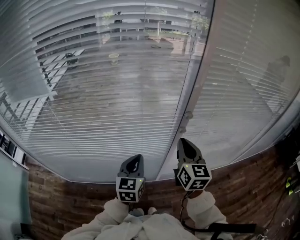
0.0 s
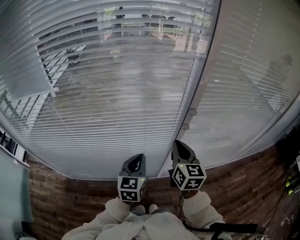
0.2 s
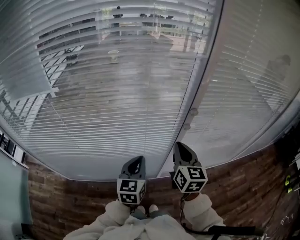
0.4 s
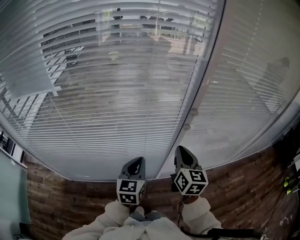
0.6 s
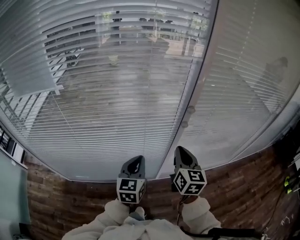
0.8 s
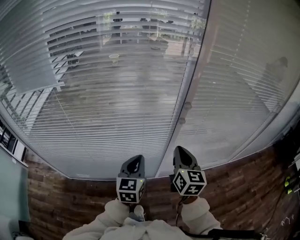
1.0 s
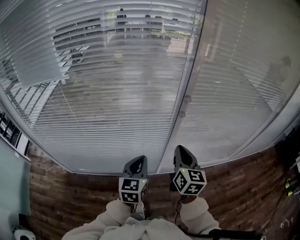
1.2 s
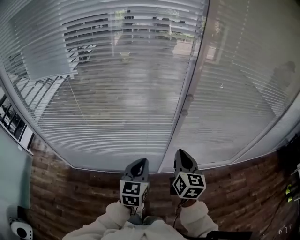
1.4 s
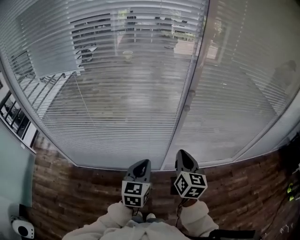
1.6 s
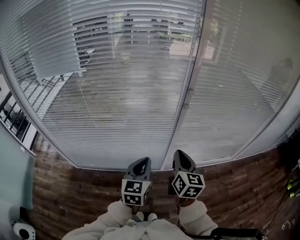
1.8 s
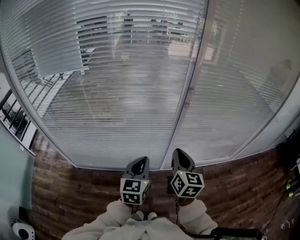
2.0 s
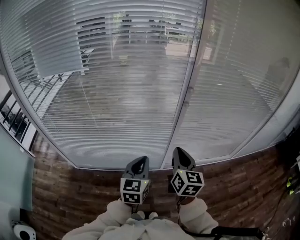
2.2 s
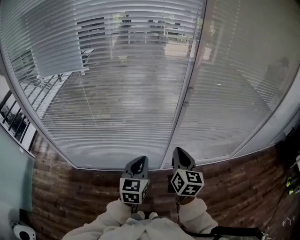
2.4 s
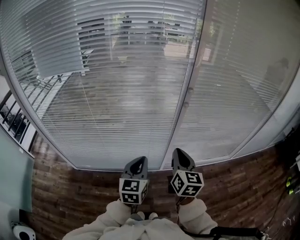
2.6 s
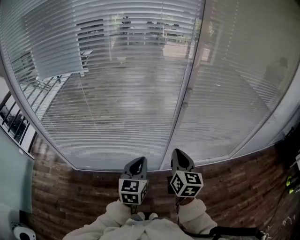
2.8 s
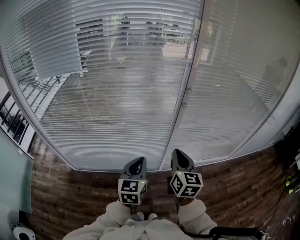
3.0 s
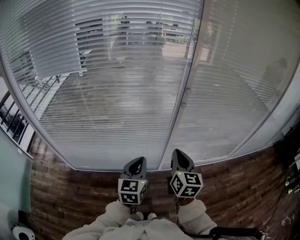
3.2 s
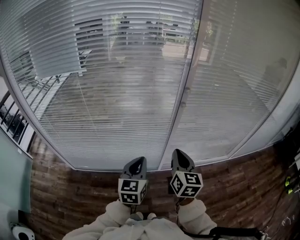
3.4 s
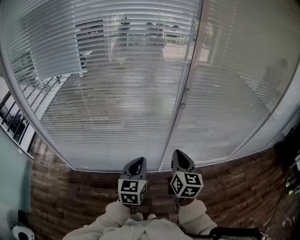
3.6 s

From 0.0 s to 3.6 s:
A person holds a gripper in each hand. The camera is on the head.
From 0.0 s to 1.8 s: Both grippers move backward, some 25 cm.
From 1.8 s to 3.6 s: The grippers move only a little.

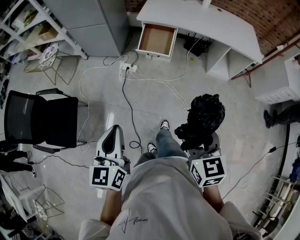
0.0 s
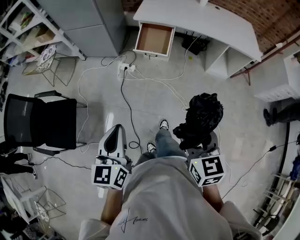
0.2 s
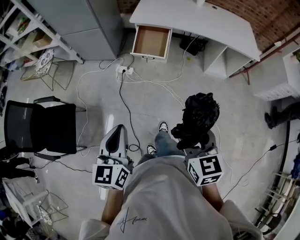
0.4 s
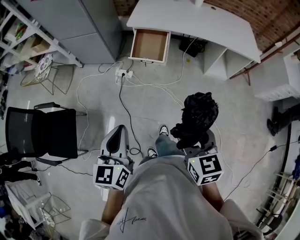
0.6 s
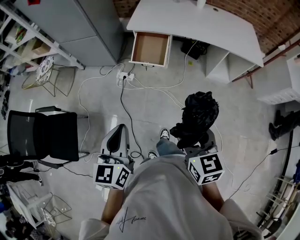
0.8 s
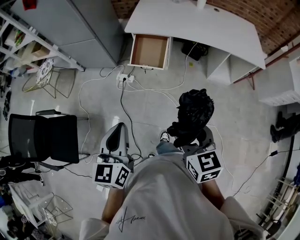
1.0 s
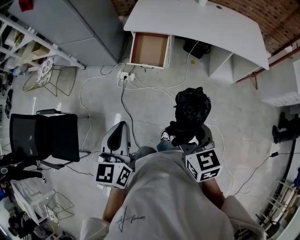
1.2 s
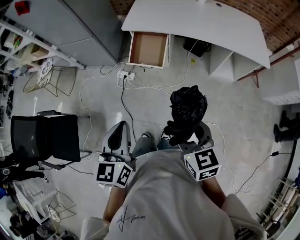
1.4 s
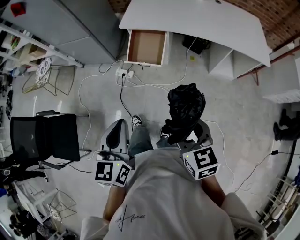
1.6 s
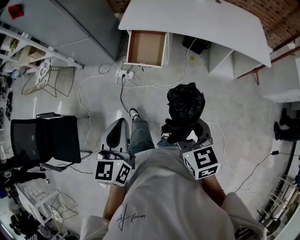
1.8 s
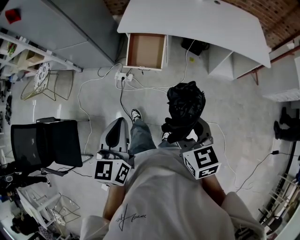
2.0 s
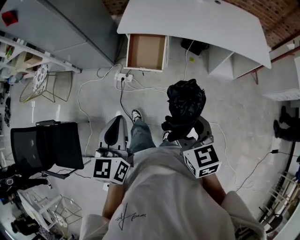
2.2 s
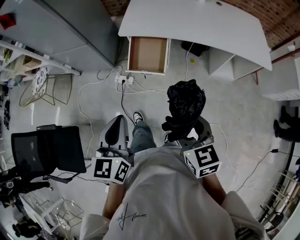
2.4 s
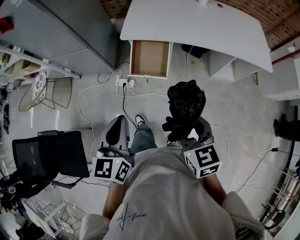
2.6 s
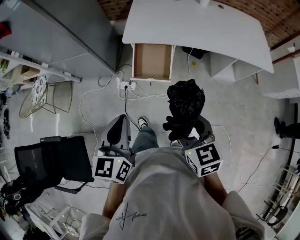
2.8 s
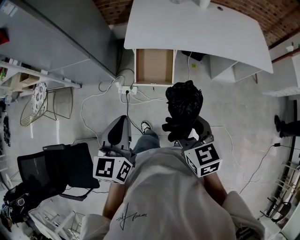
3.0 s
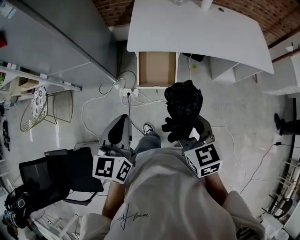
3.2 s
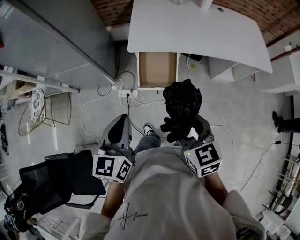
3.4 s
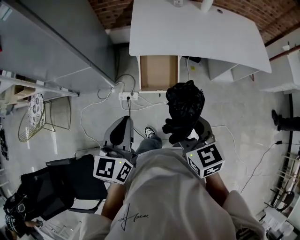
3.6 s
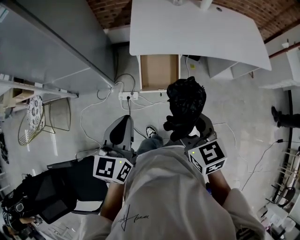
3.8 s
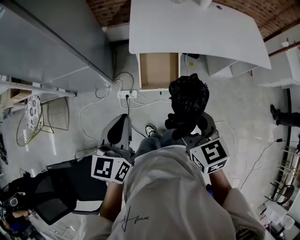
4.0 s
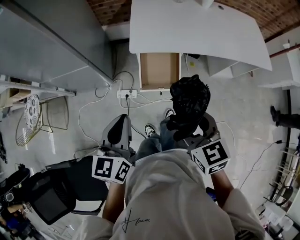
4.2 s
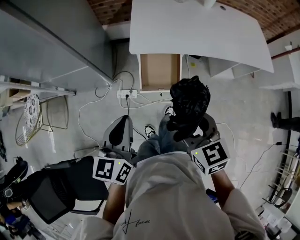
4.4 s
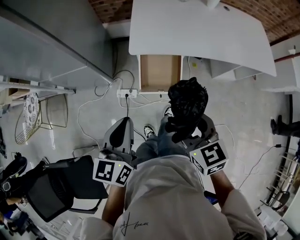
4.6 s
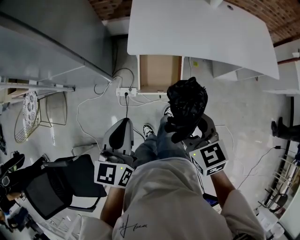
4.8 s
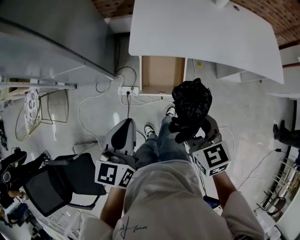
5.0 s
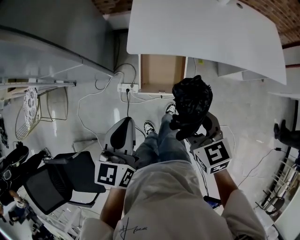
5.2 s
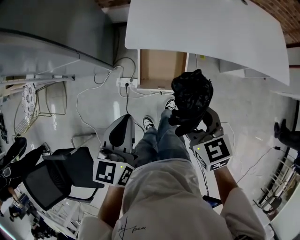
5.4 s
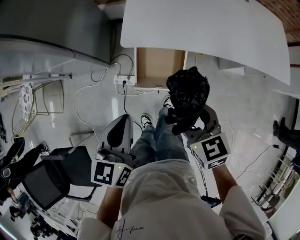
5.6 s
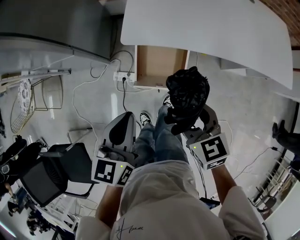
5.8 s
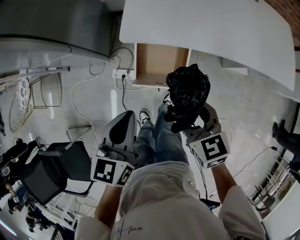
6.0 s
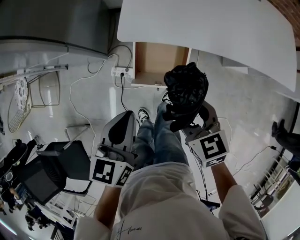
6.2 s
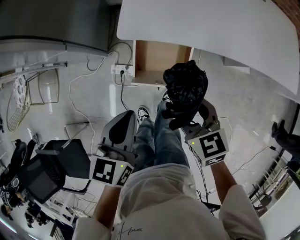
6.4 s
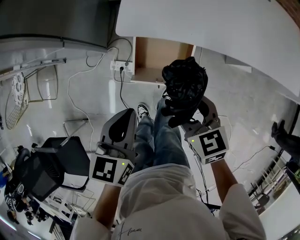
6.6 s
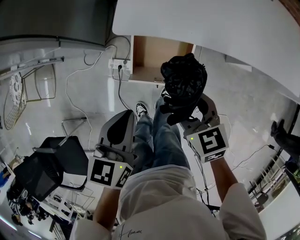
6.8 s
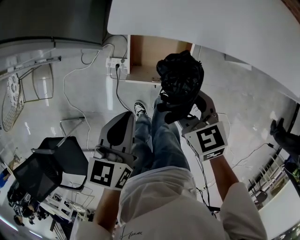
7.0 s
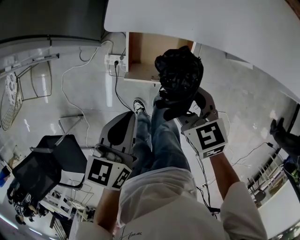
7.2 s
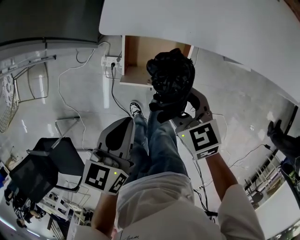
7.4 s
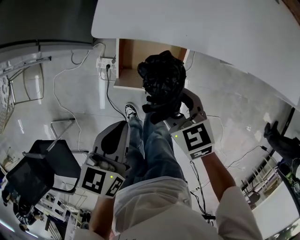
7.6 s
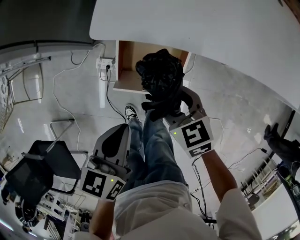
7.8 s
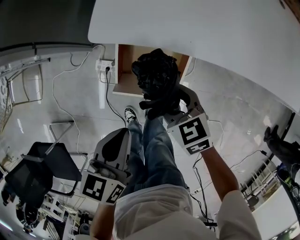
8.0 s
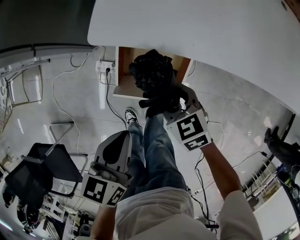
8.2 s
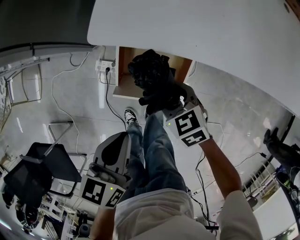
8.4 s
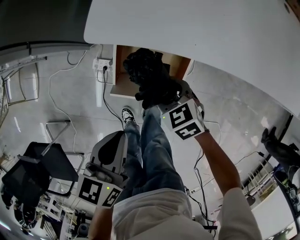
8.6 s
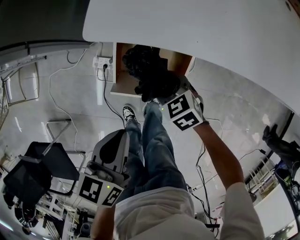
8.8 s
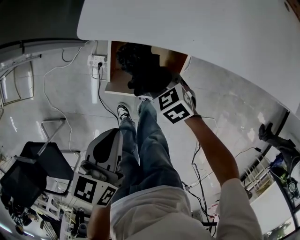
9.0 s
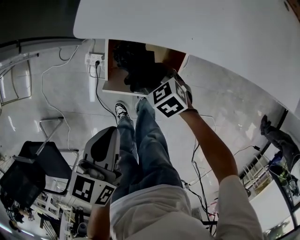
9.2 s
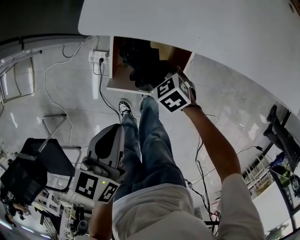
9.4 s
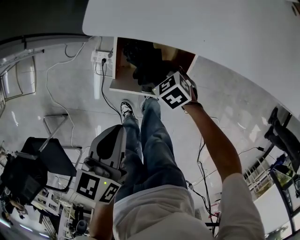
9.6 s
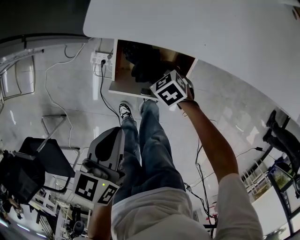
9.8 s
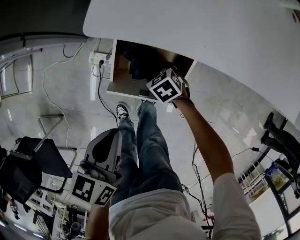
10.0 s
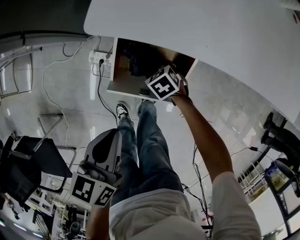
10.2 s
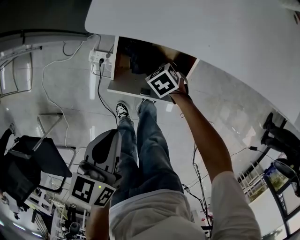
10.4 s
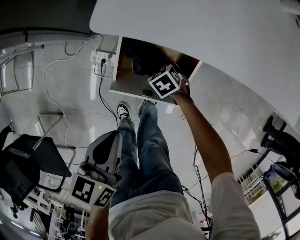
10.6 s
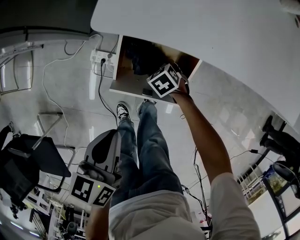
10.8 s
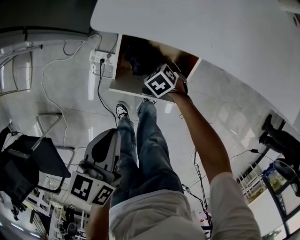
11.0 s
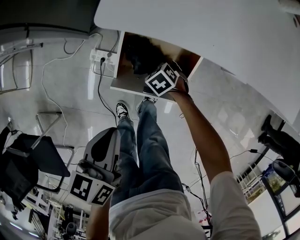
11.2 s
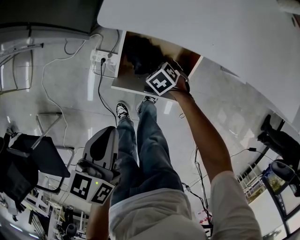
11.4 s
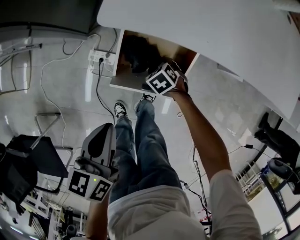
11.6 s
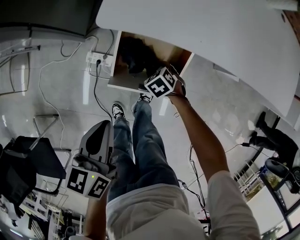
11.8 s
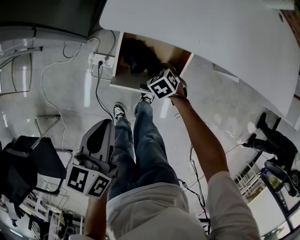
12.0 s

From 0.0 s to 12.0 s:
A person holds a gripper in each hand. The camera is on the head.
From 0.0 s to 1.6 s: The right gripper travels forward by approximately 20 cm. The left gripper shifts some 25 cm forward and to the right.
From 1.6 s to 3.0 s: Both grippers travel together forward and to the left, approximately 20 cm.
From 3.0 s to 4.4 s: The two grippers go about 10 cm forward and to the left.
From 4.4 s to 6.0 s: The right gripper travels downward, forward and to the right by about 15 cm. The left gripper moves to the right, downward and forward, some 15 cm.
From 6.0 s to 7.6 s: The right gripper moves downward and forward, about 15 cm. The left gripper is displaced downward by some 15 cm.
From 7.6 s to 9.0 s: The right gripper is displaced downward by about 15 cm.
From 9.0 s to 10.4 s: The right gripper travels downward by approximately 10 cm.
From 10.4 s to 12.0 s: The right gripper closes its fingers.

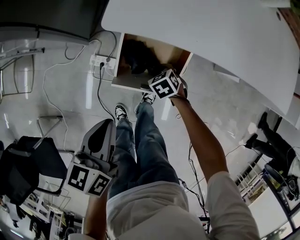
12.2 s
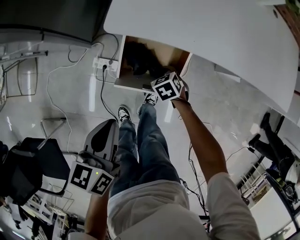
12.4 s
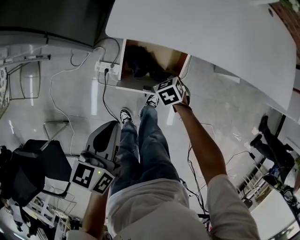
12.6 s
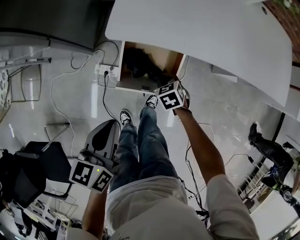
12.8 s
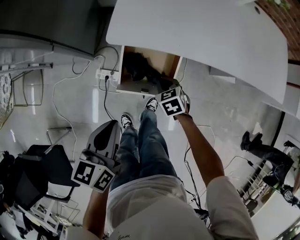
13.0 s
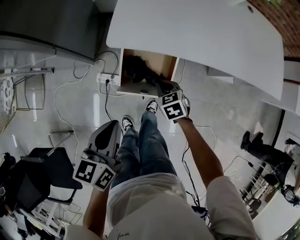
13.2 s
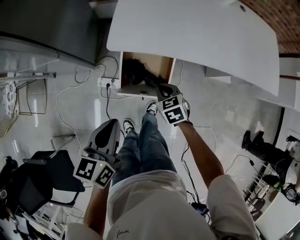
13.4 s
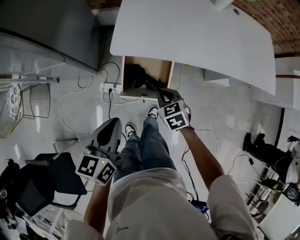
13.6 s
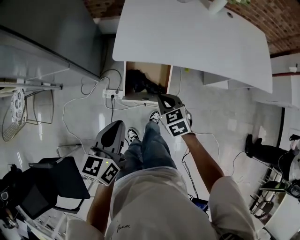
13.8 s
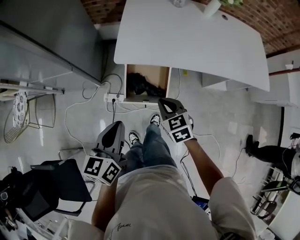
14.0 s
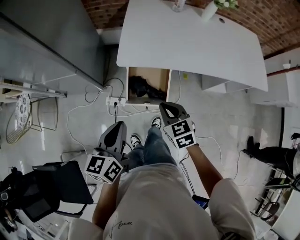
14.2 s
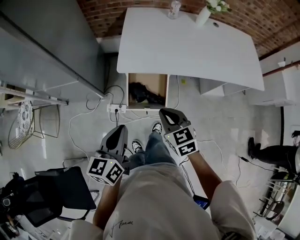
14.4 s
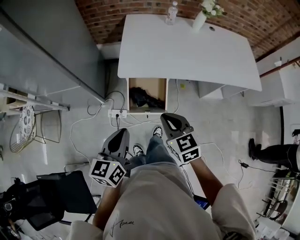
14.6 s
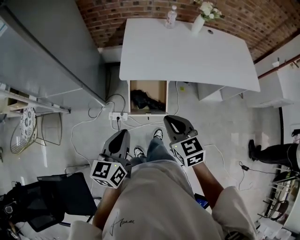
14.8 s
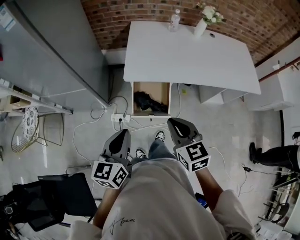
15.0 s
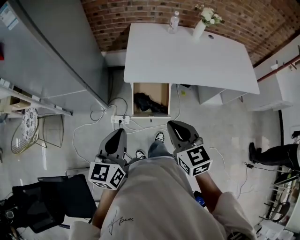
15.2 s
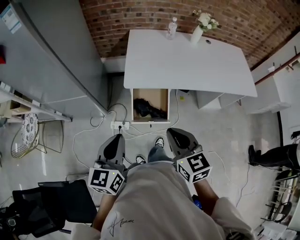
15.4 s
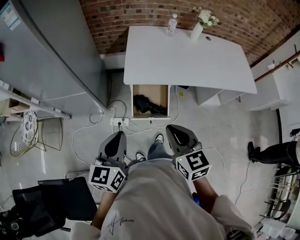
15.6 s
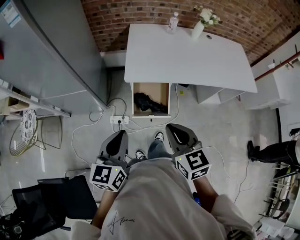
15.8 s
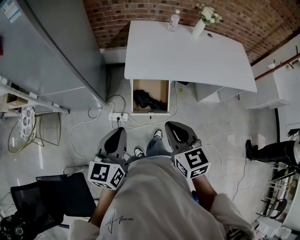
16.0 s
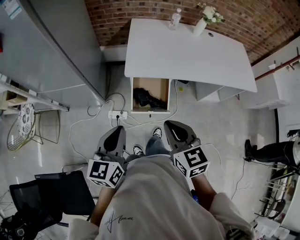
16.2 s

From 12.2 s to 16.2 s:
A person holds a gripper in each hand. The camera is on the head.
From 12.2 s to 13.6 s: The left gripper goes approximately 10 cm upward, while the right gripper shifts about 25 cm upward, and changes its angle by approximately 20 degrees.
From 13.6 s to 14.8 s: The left gripper travels upward and backward by approximately 10 cm. Meanwhile the right gripper goes approximately 25 cm upward and backward, and swivels approximately 20 degrees.
From 14.8 s to 16.2 s: The left gripper heads to the left, covering approximately 5 cm. Meanwhile the right gripper is displaced upward by some 5 cm.

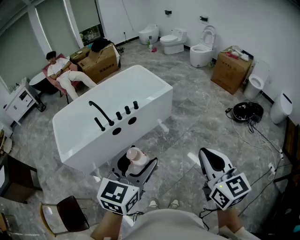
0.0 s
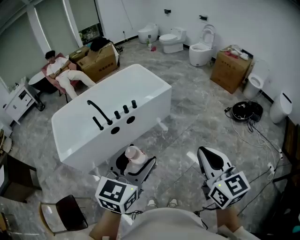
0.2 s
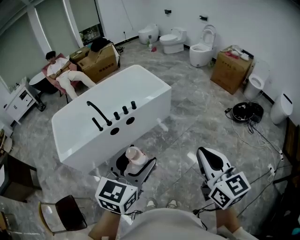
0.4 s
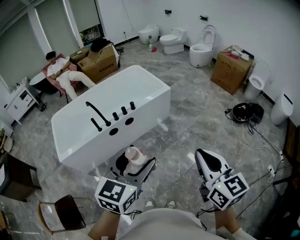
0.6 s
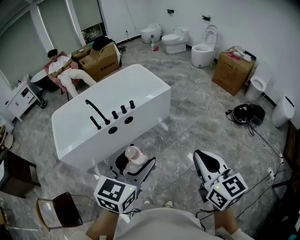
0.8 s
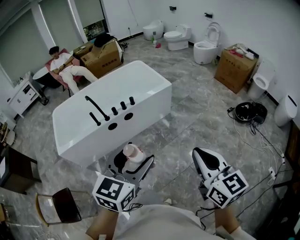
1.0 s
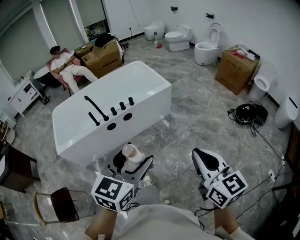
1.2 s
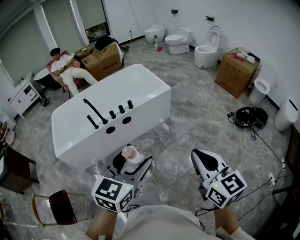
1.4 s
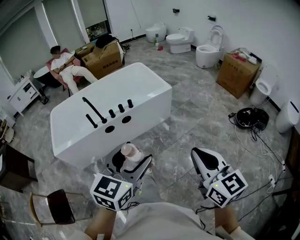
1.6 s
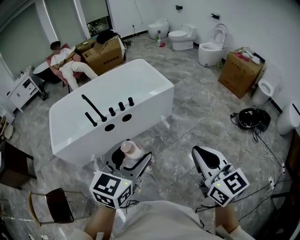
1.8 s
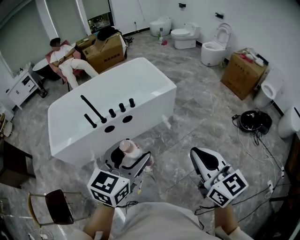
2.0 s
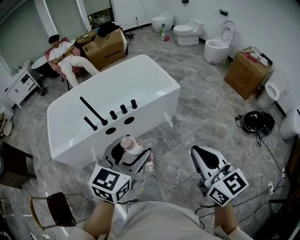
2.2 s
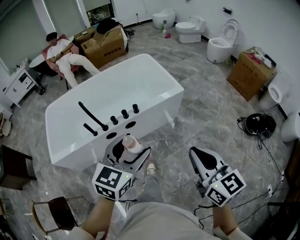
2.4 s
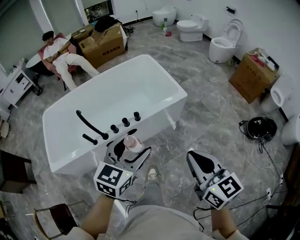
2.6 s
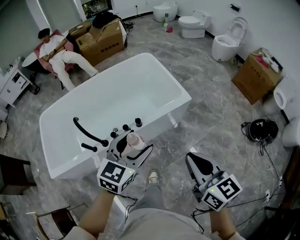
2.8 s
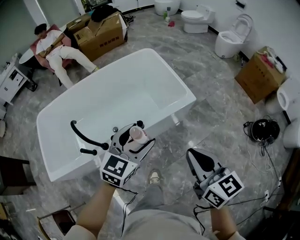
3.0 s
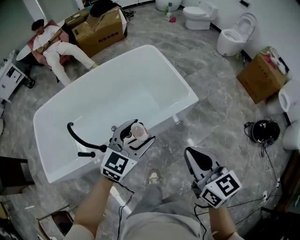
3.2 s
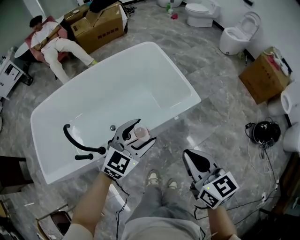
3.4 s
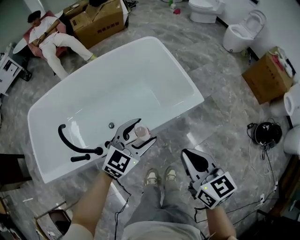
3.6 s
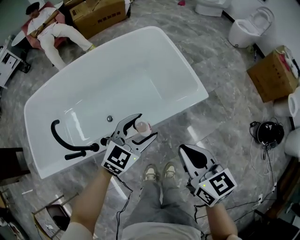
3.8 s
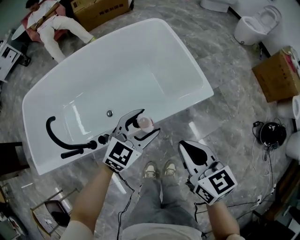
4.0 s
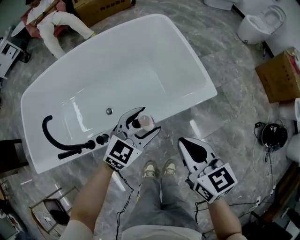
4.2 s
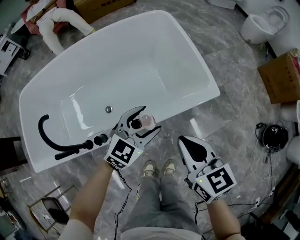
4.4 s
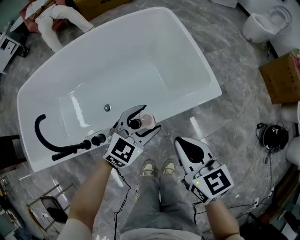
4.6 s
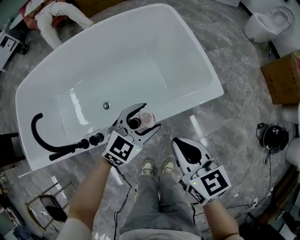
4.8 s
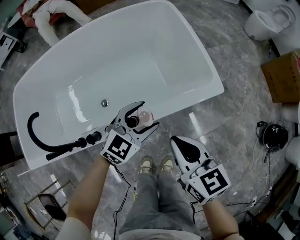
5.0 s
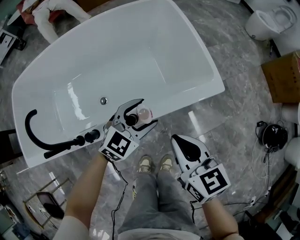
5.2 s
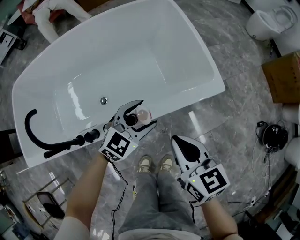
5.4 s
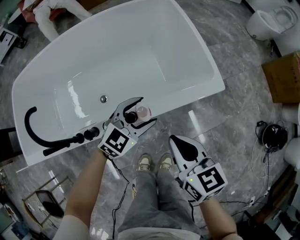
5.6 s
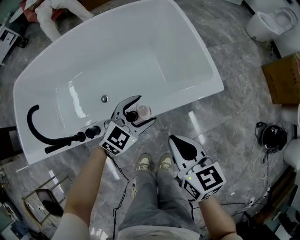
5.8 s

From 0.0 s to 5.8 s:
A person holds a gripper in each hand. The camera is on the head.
From 0.0 s to 1.4 s: Both grippers move to the right, about 10 cm.
From 1.4 s to 2.8 s: The two grippers travel together, forward, roughly 50 cm.
From 2.8 s to 4.4 s: The left gripper shifts approximately 40 cm downward and forward. The right gripper goes some 35 cm forward and downward.
From 4.4 s to 5.8 s: The grippers both shift downward by about 5 cm.
